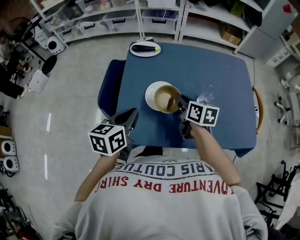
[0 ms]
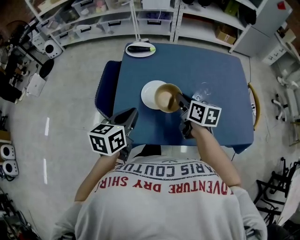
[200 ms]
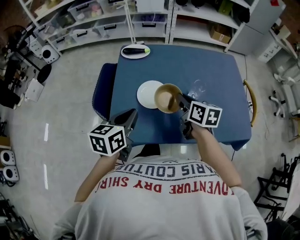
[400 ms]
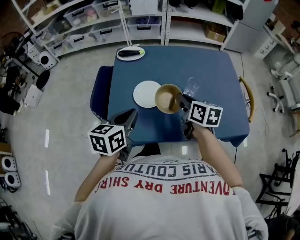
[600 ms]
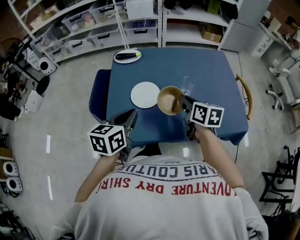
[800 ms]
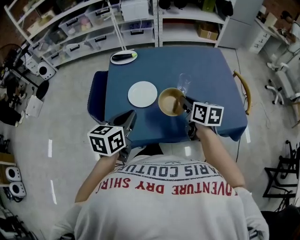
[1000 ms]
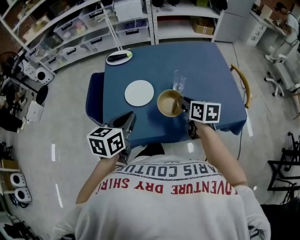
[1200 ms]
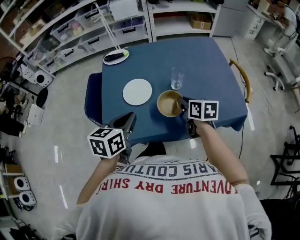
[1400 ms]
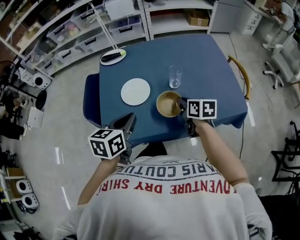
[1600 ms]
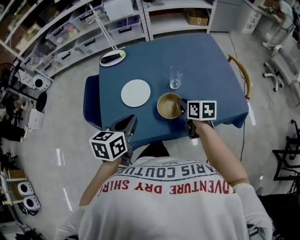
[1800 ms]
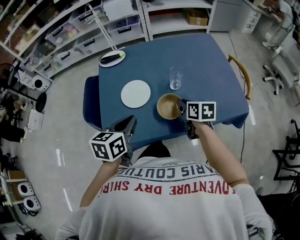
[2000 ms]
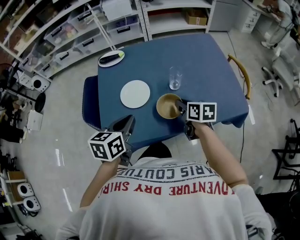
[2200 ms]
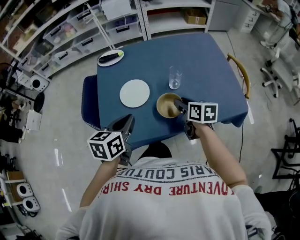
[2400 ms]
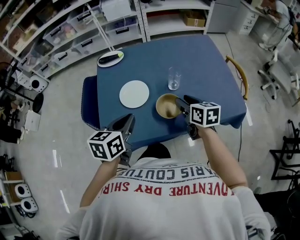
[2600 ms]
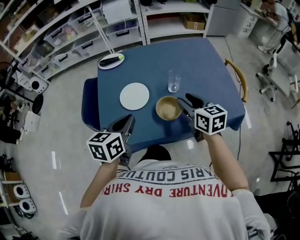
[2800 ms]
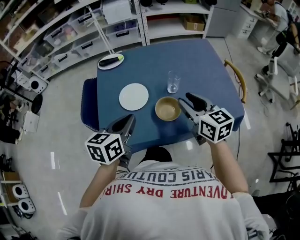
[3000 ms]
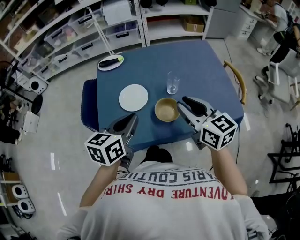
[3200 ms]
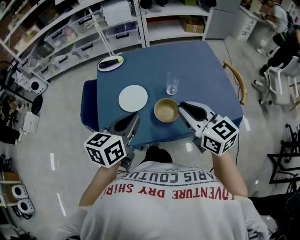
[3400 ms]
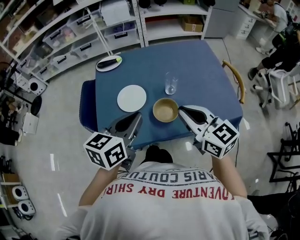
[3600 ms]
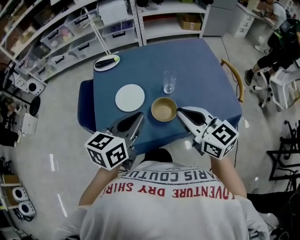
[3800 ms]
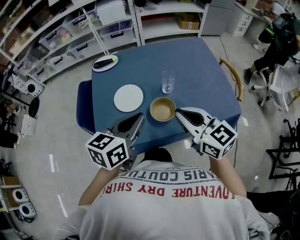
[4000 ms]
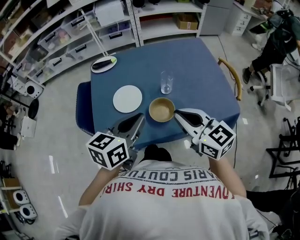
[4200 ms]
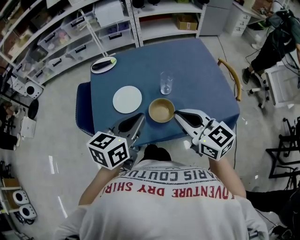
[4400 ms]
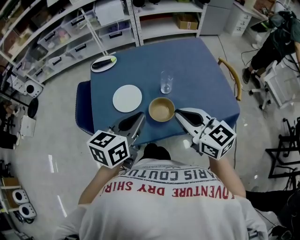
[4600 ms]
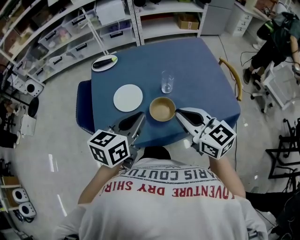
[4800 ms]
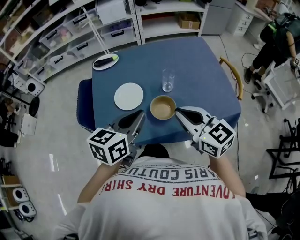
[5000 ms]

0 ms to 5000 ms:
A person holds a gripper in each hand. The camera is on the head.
0 ms to 1600 ms: The left gripper moves to the right, some 10 cm. Meanwhile the right gripper moves to the right and backward, roughly 15 cm.
1600 ms to 3400 ms: The right gripper travels upward and backward by roughly 20 cm, and turns by some 40 degrees; the left gripper moves upward, some 5 cm.
3400 ms to 5000 ms: The grippers stay close to where they were, moving slightly.

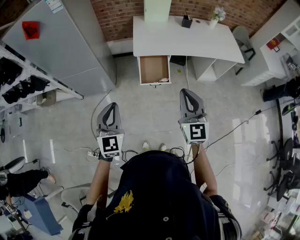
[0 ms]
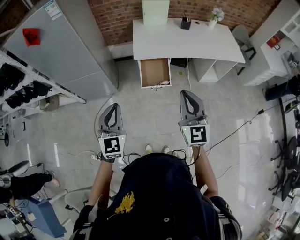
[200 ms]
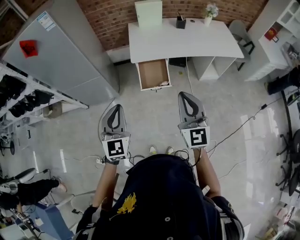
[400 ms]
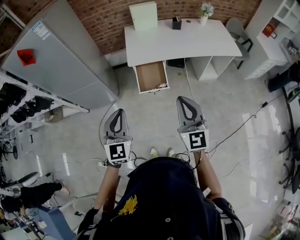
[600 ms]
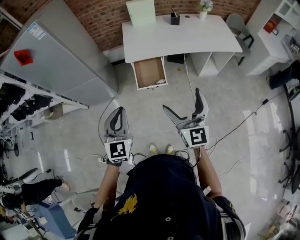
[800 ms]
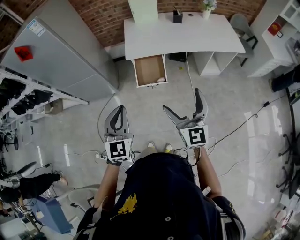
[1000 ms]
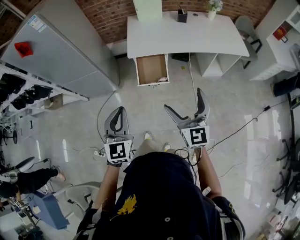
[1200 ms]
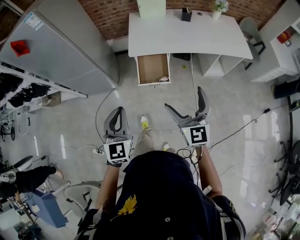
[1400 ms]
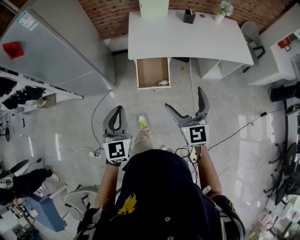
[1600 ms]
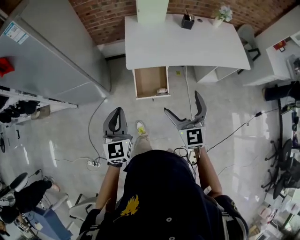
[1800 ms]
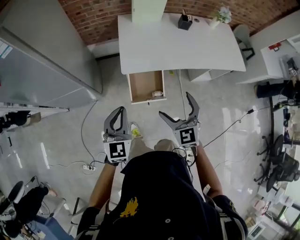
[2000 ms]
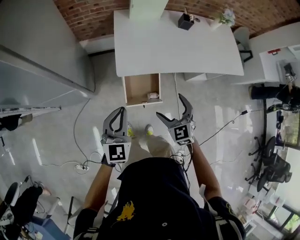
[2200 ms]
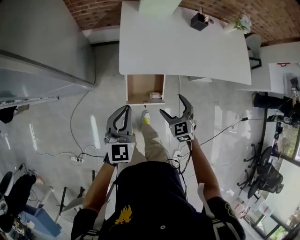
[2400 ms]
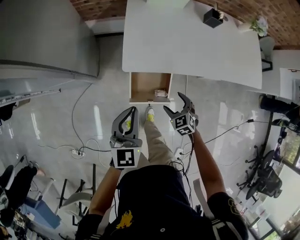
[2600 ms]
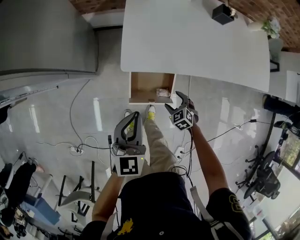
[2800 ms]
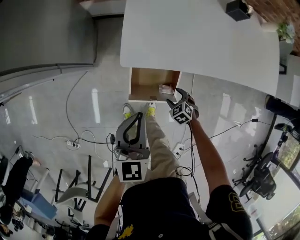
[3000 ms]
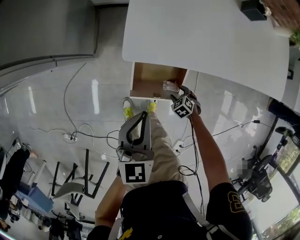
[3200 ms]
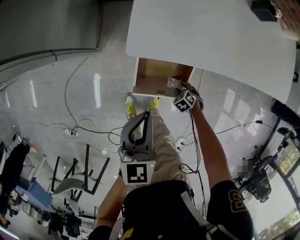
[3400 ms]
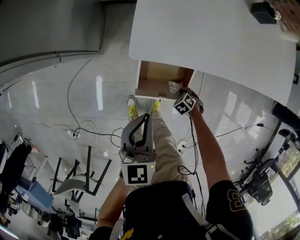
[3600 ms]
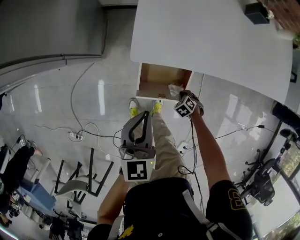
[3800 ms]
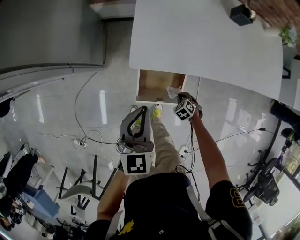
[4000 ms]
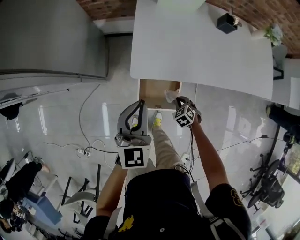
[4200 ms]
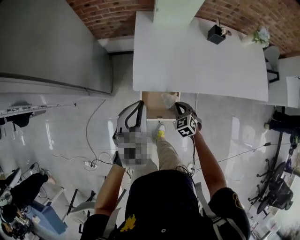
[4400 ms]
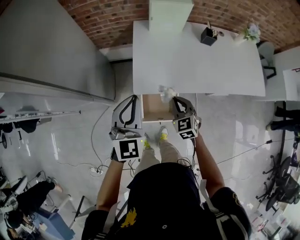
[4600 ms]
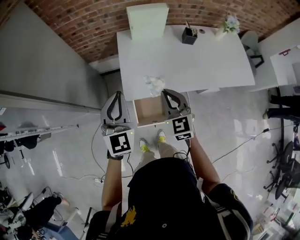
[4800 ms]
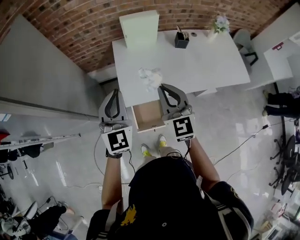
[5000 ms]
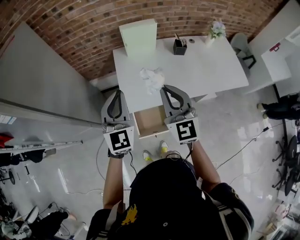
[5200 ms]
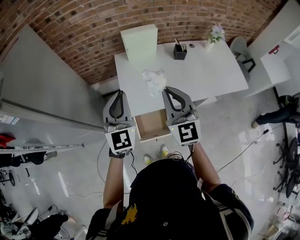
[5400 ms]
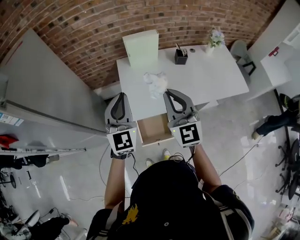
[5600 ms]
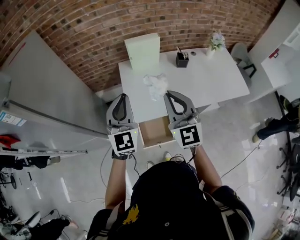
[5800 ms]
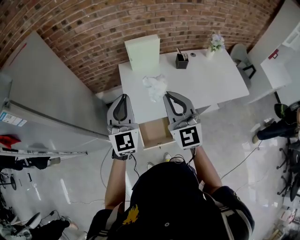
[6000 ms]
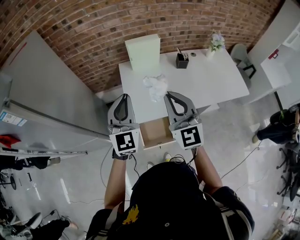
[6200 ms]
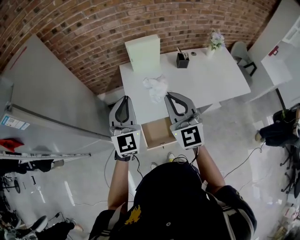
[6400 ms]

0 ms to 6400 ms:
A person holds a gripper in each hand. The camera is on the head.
0 ms to 1600 ms: The right gripper is displaced forward and to the right by approximately 15 cm, and opens its fingers; the left gripper goes approximately 15 cm to the right and forward.
1600 ms to 3200 ms: The right gripper goes some 70 cm downward, tilts its fingers some 70 degrees downward, and closes its fingers; the left gripper ends up about 40 cm from where it was, and turns by about 30 degrees.
3200 ms to 4800 ms: The left gripper shifts approximately 30 cm upward, and swivels roughly 30 degrees; the right gripper is displaced upward by about 60 cm, angles its fingers upward, by about 60 degrees, and closes.
4800 ms to 6400 ms: The right gripper goes approximately 20 cm upward, and rotates roughly 20 degrees; the left gripper is displaced upward by some 5 cm.

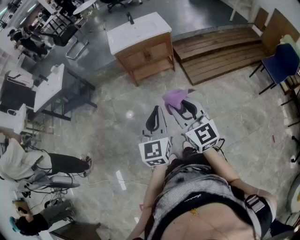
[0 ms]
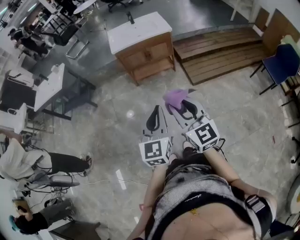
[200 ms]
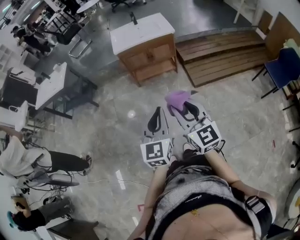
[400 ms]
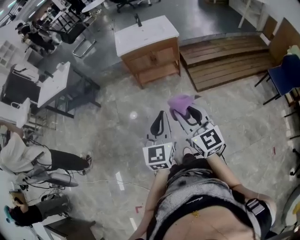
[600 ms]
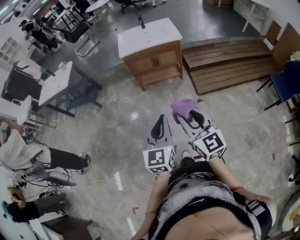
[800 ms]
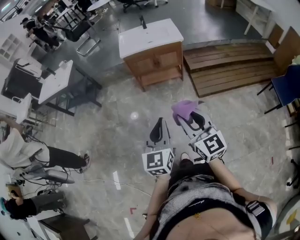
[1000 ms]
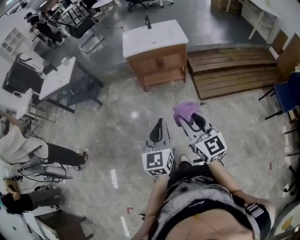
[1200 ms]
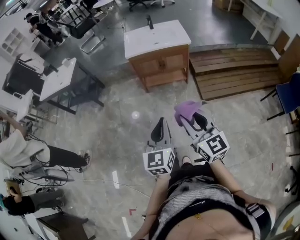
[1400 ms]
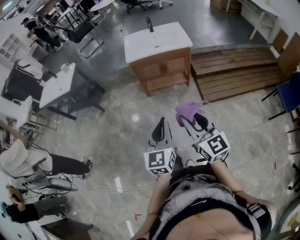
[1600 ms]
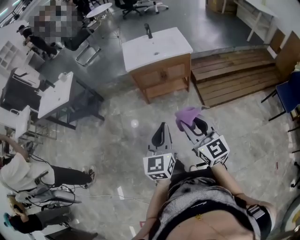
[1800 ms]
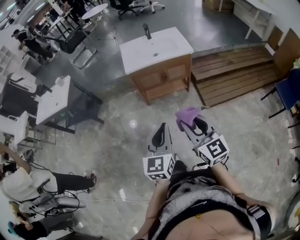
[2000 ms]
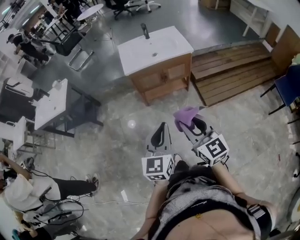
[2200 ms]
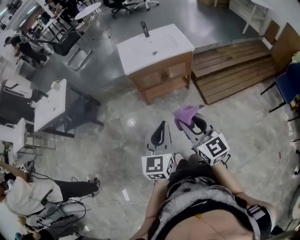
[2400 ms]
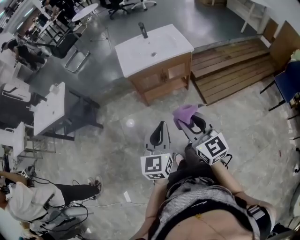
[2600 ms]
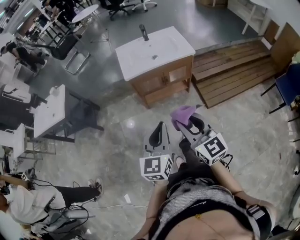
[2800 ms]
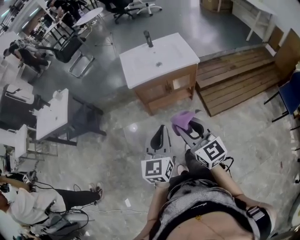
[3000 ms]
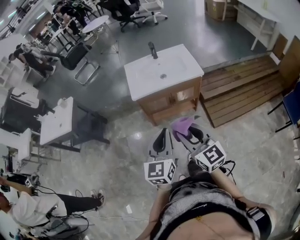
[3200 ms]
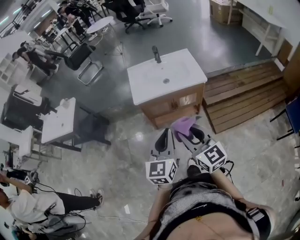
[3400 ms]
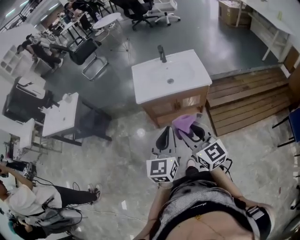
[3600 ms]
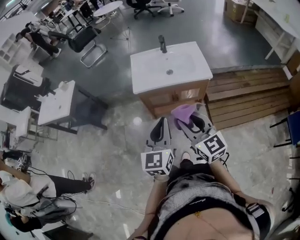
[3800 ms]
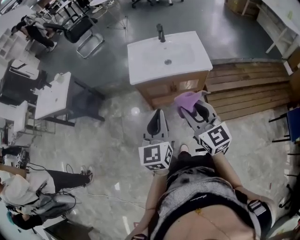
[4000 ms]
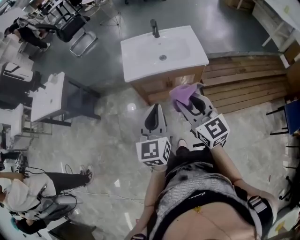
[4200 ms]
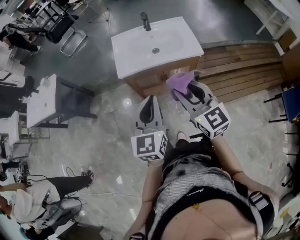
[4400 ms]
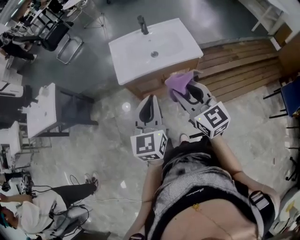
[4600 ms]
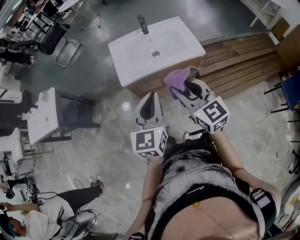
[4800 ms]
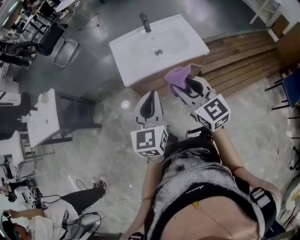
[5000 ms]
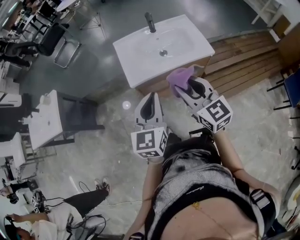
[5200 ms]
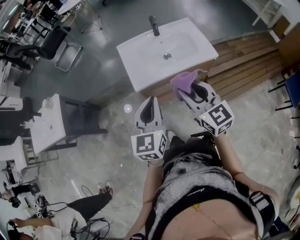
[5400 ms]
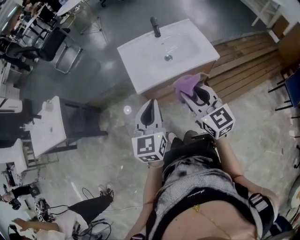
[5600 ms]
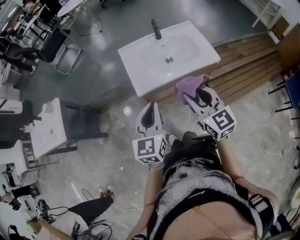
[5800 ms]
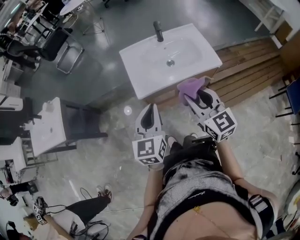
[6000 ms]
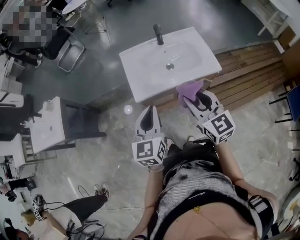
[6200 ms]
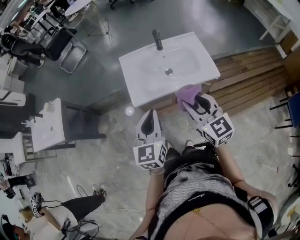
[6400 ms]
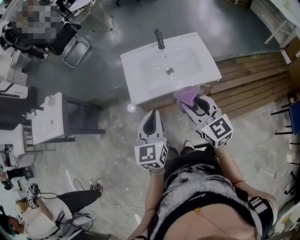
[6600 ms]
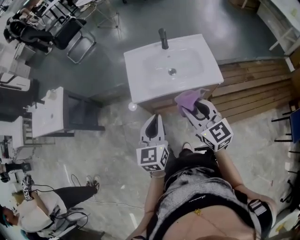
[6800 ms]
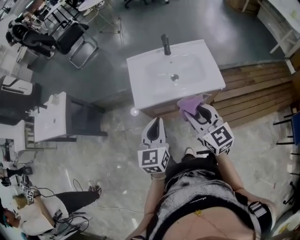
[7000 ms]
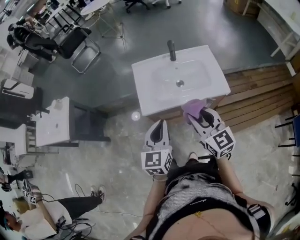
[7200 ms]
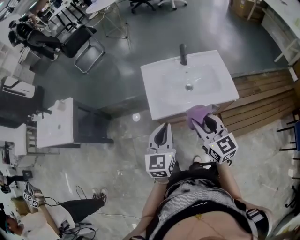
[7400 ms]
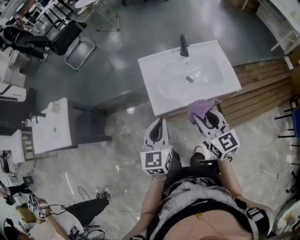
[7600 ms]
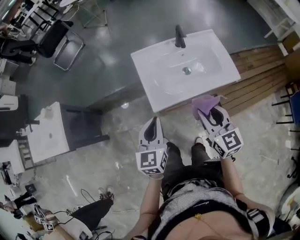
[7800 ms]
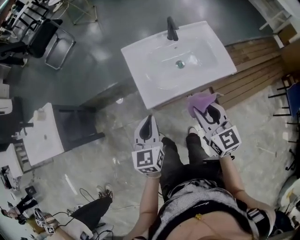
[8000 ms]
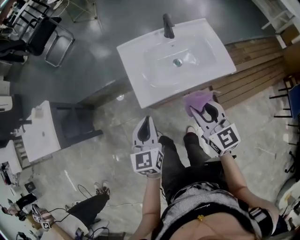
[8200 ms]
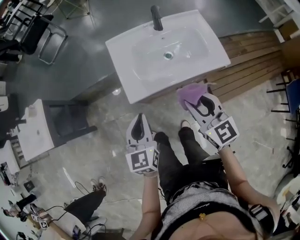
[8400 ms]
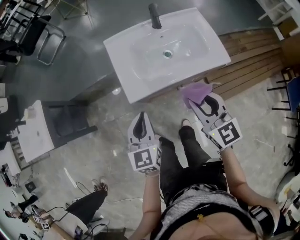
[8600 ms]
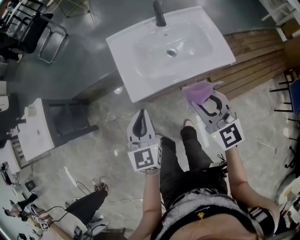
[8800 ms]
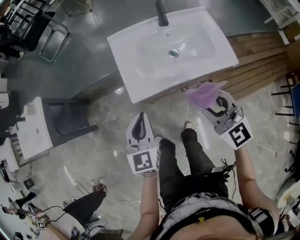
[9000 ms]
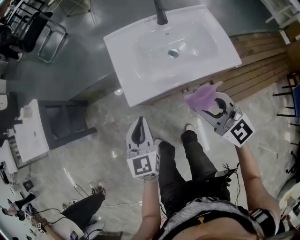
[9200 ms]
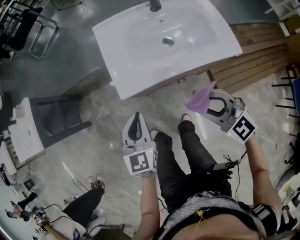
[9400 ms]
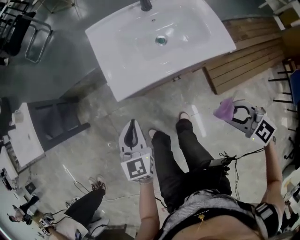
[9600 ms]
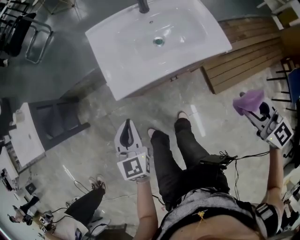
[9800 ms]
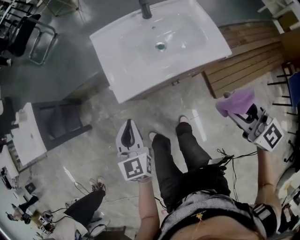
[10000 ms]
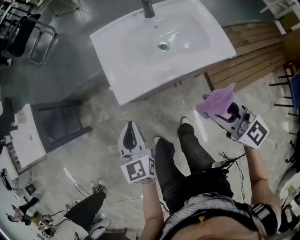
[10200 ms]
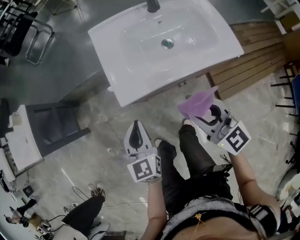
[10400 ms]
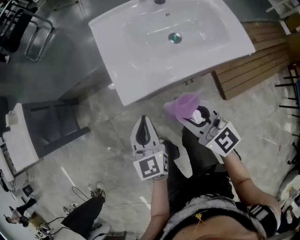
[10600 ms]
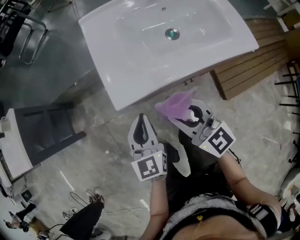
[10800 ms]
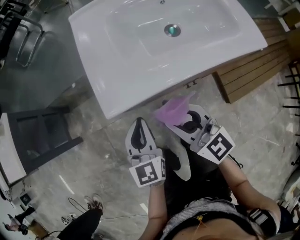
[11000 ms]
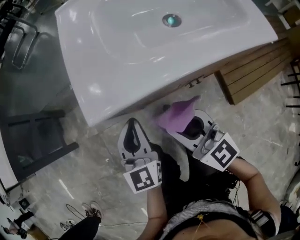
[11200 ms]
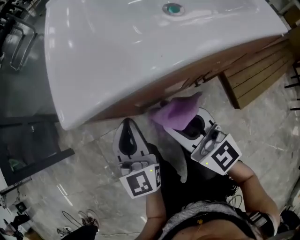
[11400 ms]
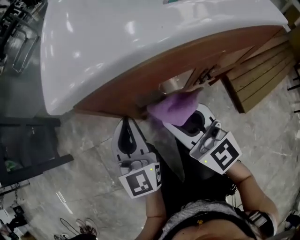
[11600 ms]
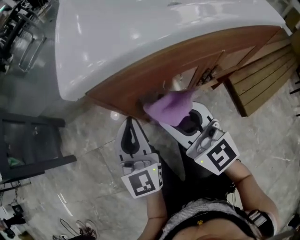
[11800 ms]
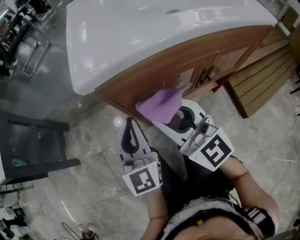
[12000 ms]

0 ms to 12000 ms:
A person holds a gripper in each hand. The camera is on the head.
0 ms to 1600 ms: The two grippers go roughly 10 cm forward.
1600 ms to 3000 ms: The right gripper is displaced forward and to the left by some 20 cm, while the left gripper heads forward, covering about 20 cm.
3000 ms to 4400 ms: The left gripper is displaced forward by about 15 cm, while the right gripper travels forward and to the right by about 20 cm.
4400 ms to 6000 ms: The two grippers go about 15 cm forward and to the left.
6000 ms to 7600 ms: Both grippers travel together forward, about 5 cm.
7600 ms to 9000 ms: The right gripper moves to the right and downward, about 10 cm, and swivels some 30 degrees, while the left gripper heads downward, covering some 10 cm.
9000 ms to 10400 ms: The left gripper goes up and down, roughly 10 cm each way, reversing 2 times. Meanwhile the right gripper travels downward by roughly 10 cm, and goes to the right and returns, some 15 cm each way.
10400 ms to 12000 ms: The left gripper is displaced downward by approximately 20 cm, and turns by roughly 30 degrees; the right gripper shifts about 25 cm downward and to the left, and rotates about 20 degrees.
